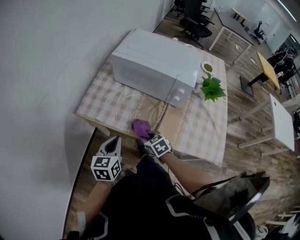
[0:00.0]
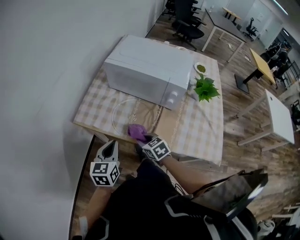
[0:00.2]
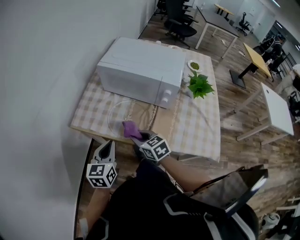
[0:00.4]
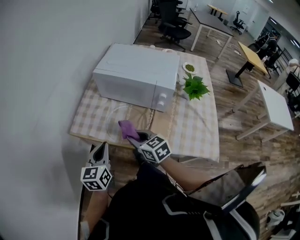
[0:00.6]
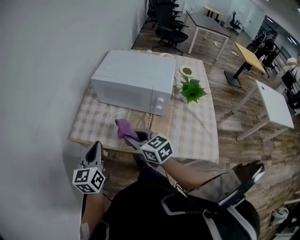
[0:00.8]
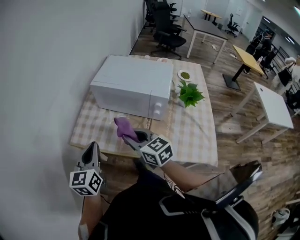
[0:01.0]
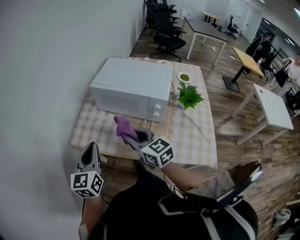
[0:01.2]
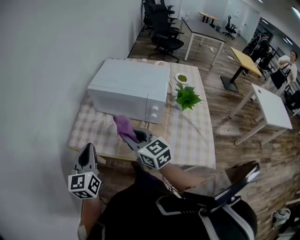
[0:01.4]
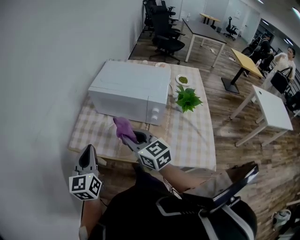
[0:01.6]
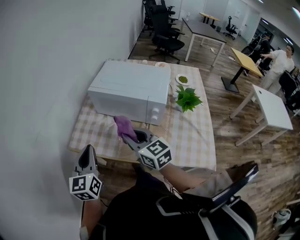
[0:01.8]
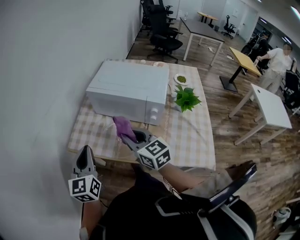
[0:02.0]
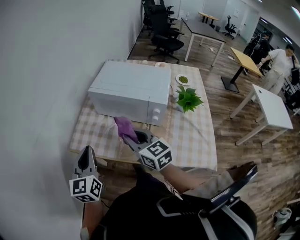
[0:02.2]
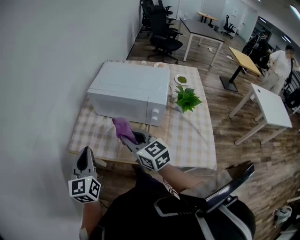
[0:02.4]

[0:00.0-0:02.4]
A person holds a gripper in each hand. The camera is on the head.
0.0 to 1.2 s: The left gripper moves upward, approximately 15 cm, and turns by about 20 degrees; the right gripper travels upward by roughly 25 cm, and points its fingers some 40 degrees further upward.
1.2 to 2.4 s: The grippers stay close to where they were, moving slightly.

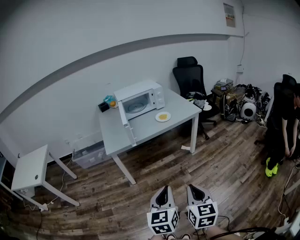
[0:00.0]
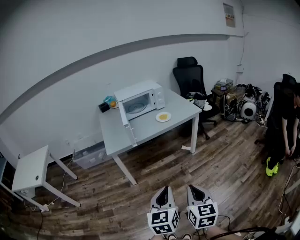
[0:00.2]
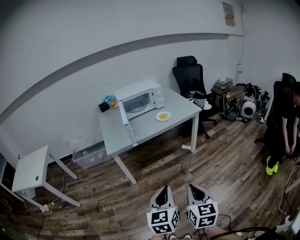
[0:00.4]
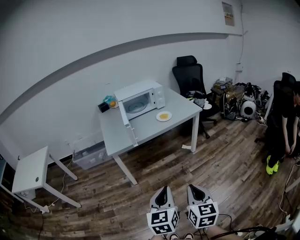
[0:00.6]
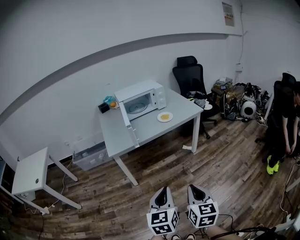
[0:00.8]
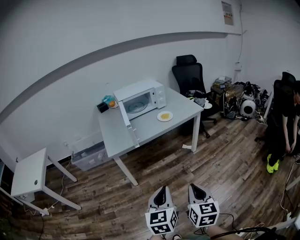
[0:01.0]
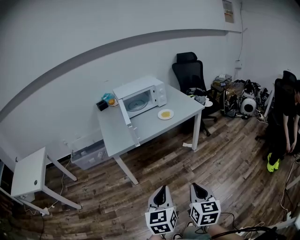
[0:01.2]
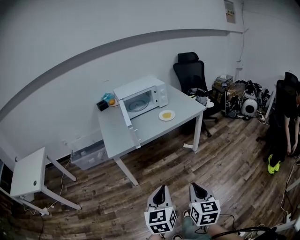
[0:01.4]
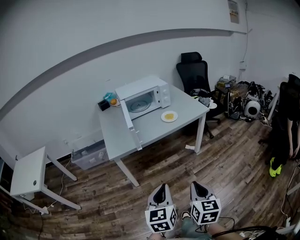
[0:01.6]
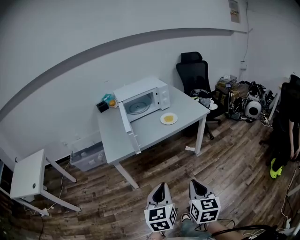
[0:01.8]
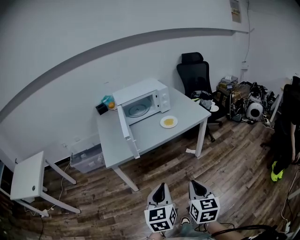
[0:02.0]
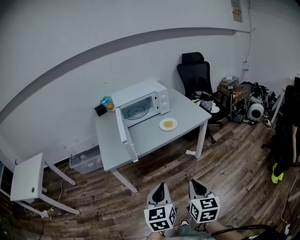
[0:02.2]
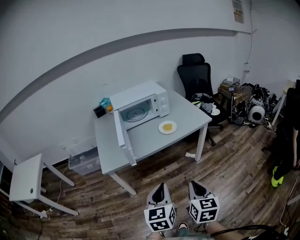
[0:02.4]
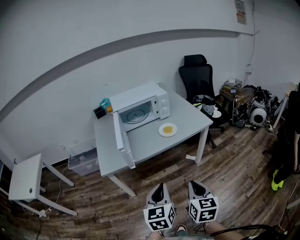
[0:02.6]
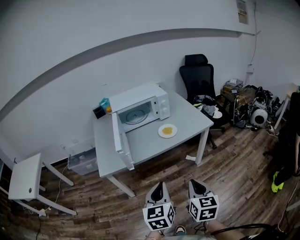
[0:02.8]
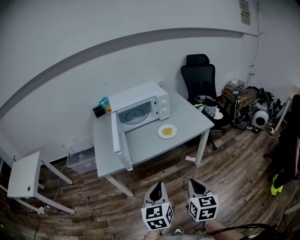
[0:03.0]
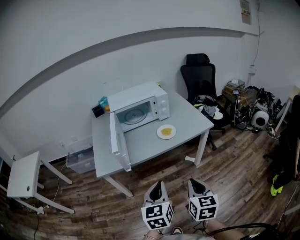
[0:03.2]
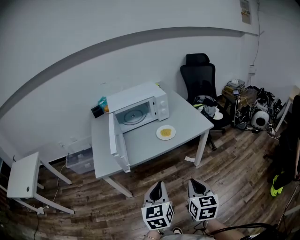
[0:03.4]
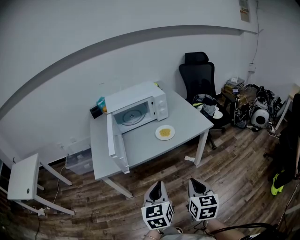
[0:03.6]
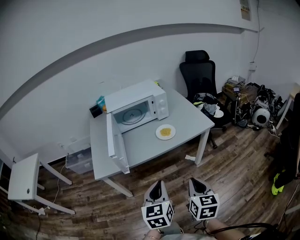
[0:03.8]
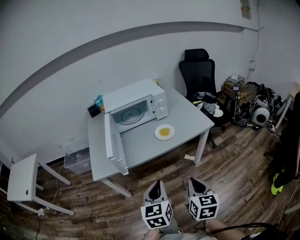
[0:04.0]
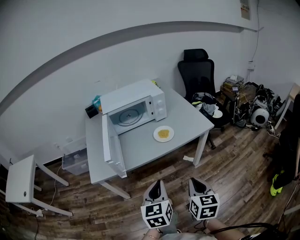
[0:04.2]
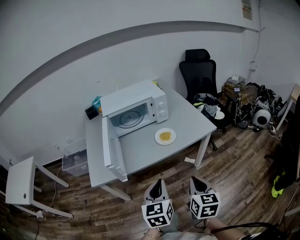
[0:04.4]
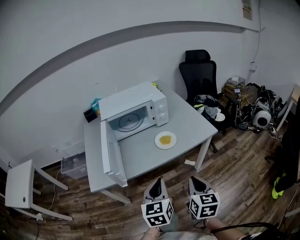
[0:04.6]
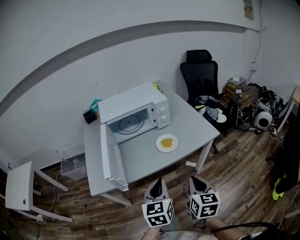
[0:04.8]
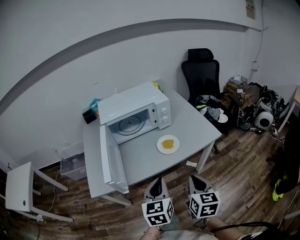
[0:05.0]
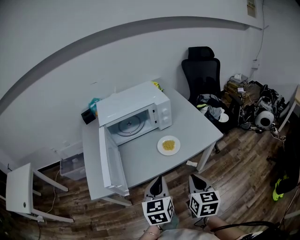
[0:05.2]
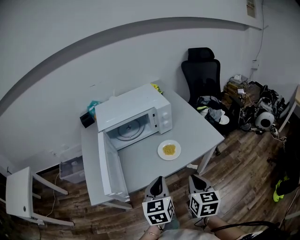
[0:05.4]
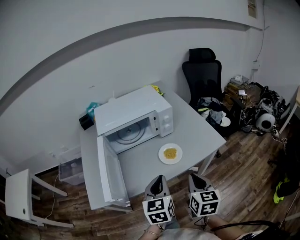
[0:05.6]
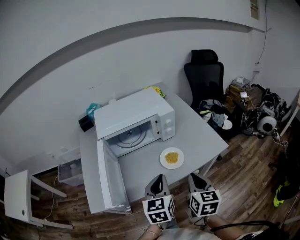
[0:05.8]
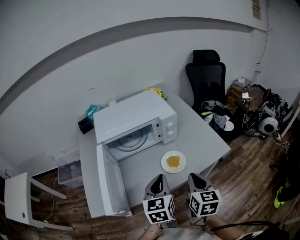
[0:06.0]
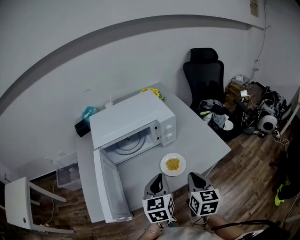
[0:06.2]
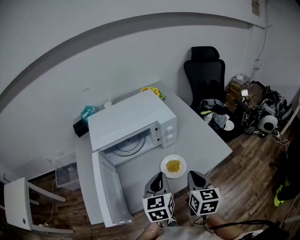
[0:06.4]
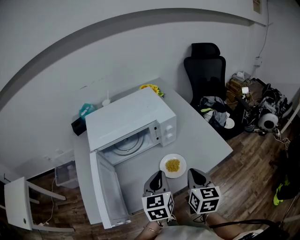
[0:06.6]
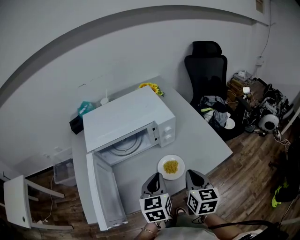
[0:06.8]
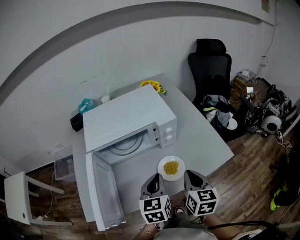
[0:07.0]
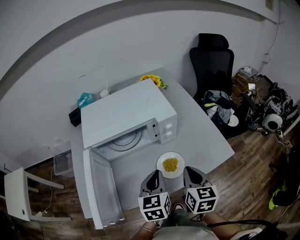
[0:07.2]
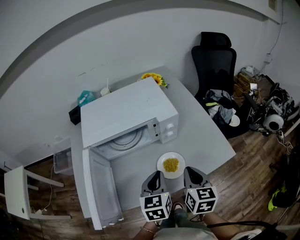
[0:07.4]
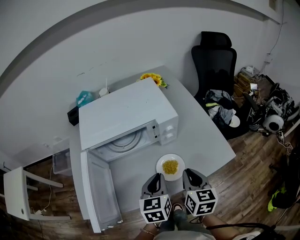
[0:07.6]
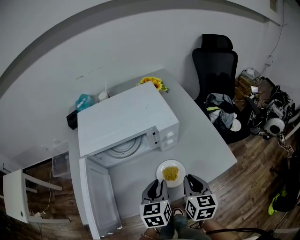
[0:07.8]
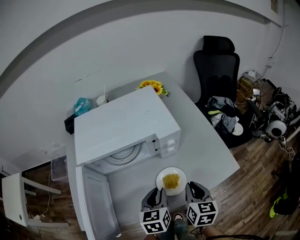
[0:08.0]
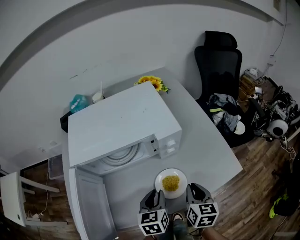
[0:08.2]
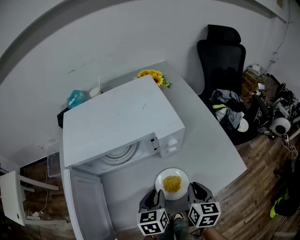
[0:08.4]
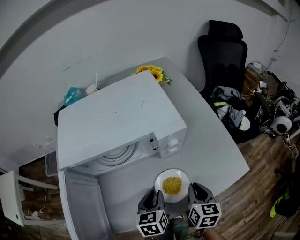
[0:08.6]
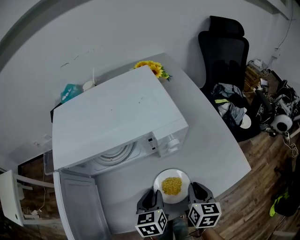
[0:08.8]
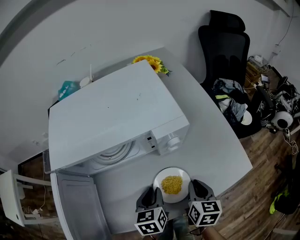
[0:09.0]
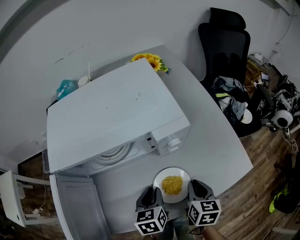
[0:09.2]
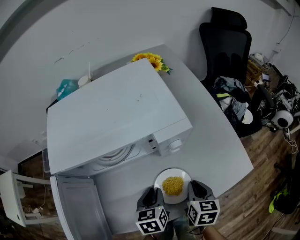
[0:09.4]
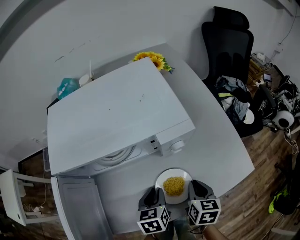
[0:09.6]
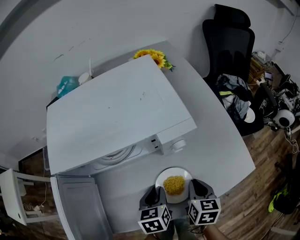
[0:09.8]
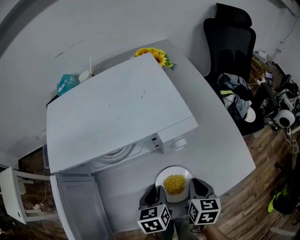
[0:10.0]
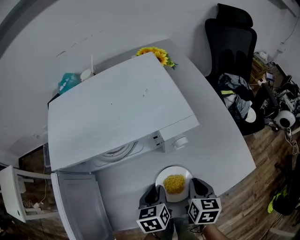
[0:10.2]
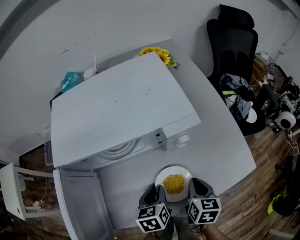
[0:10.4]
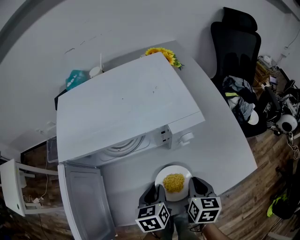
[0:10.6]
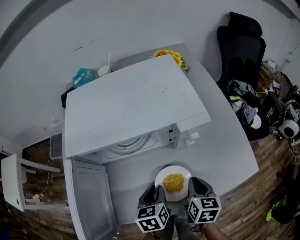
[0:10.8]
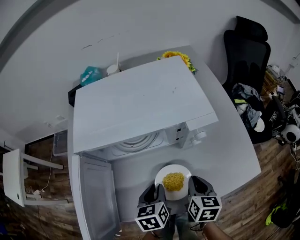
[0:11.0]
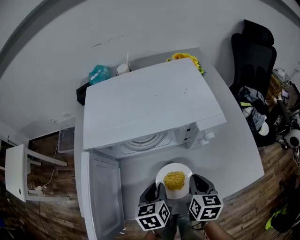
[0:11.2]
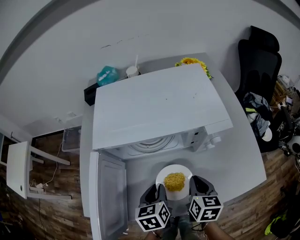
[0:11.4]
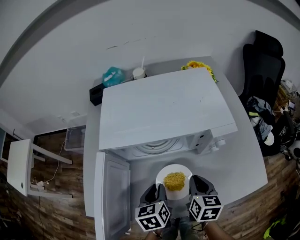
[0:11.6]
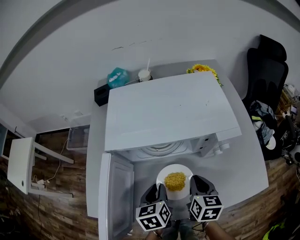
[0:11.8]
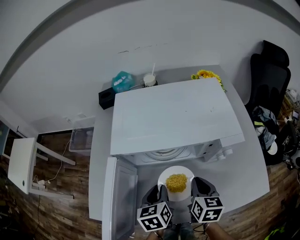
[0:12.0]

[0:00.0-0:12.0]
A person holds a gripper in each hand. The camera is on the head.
0.0 to 1.6 s: The right gripper shifts roughly 10 cm forward; the left gripper shifts about 10 cm forward and to the left.
1.6 to 3.0 s: The grippers both shift forward by approximately 20 cm.
3.0 to 4.4 s: The grippers both shift forward by some 10 cm.
4.4 to 6.0 s: The grippers both shift forward by some 25 cm.
6.0 to 7.6 s: The left gripper travels forward and downward by roughly 10 cm. Meanwhile the right gripper shifts approximately 10 cm forward.
7.6 to 9.0 s: The left gripper moves downward, approximately 15 cm; the right gripper moves downward and forward, about 15 cm.
9.0 to 10.4 s: The grippers make only small movements.
10.4 to 12.0 s: The right gripper moves to the left, upward and forward, about 15 cm, while the left gripper shifts approximately 15 cm to the left and upward.

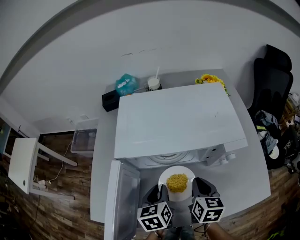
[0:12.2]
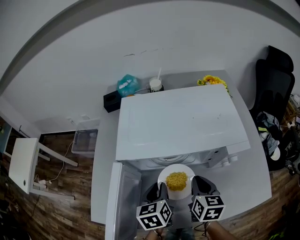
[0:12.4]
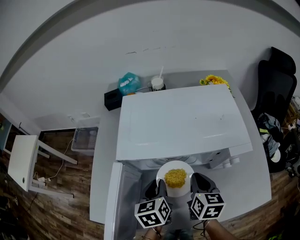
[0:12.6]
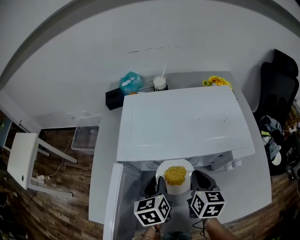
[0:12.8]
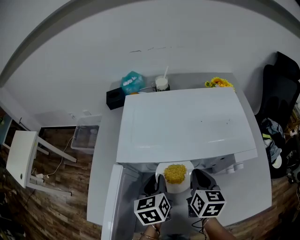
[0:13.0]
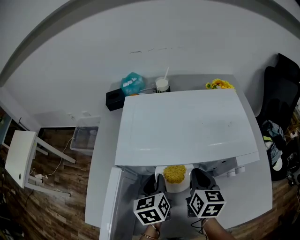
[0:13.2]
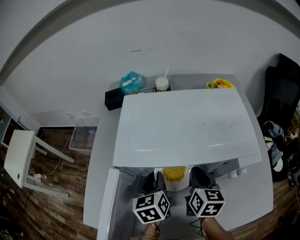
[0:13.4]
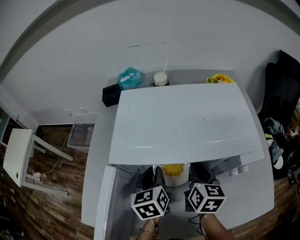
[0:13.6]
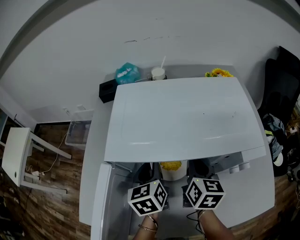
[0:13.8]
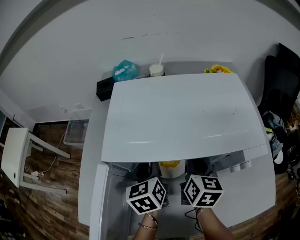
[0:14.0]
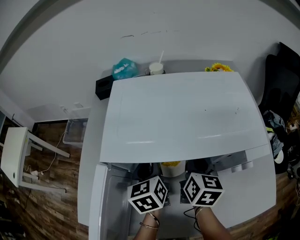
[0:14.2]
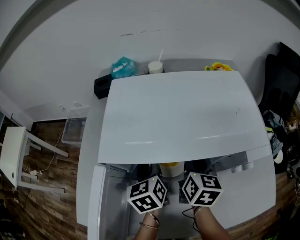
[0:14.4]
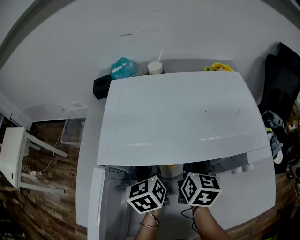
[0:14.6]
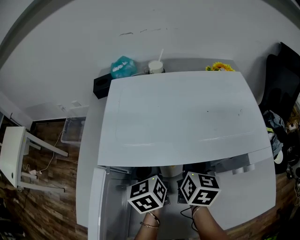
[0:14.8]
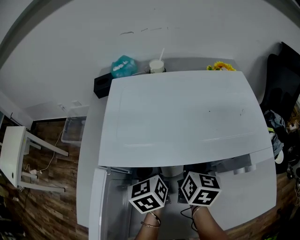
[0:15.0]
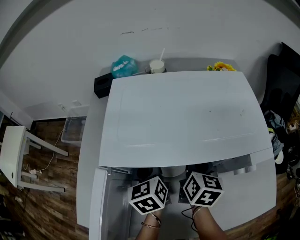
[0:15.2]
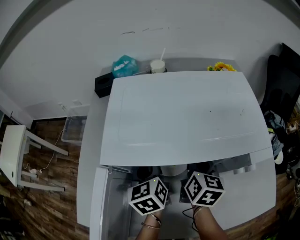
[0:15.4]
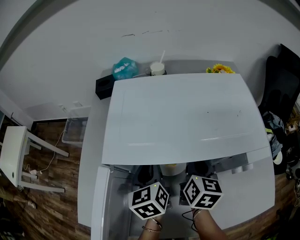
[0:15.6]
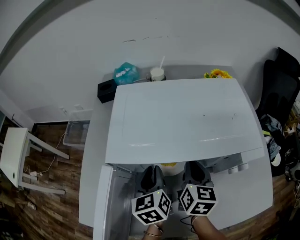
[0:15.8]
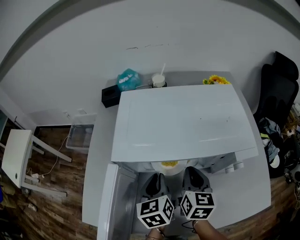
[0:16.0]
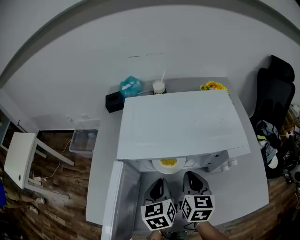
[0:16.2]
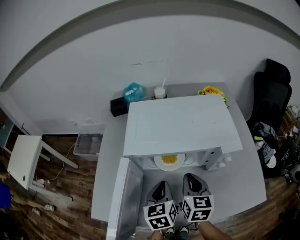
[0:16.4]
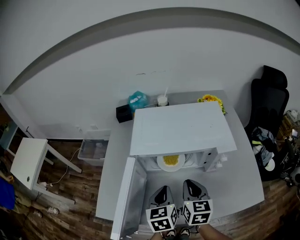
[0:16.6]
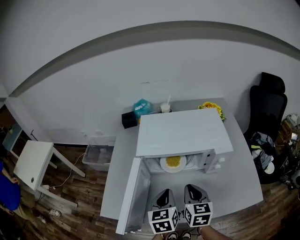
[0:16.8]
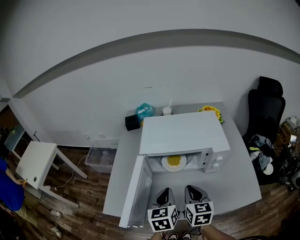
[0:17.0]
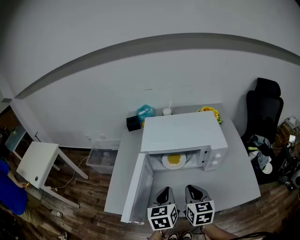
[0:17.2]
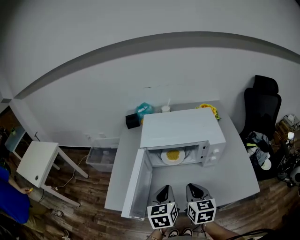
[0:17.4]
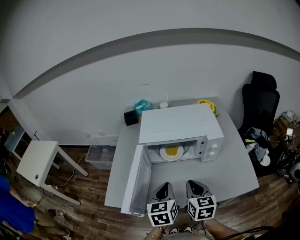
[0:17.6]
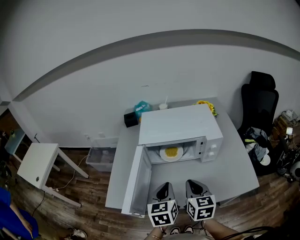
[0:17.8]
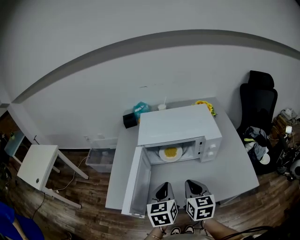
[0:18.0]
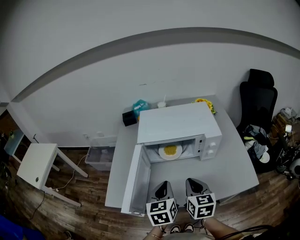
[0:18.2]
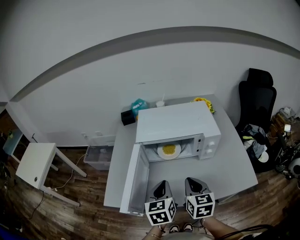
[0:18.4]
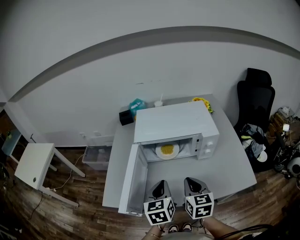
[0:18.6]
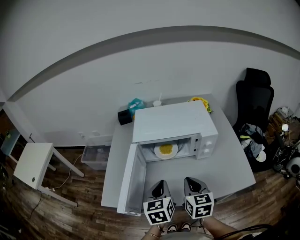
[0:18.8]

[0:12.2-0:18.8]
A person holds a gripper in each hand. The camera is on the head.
12.2 to 13.8 s: Both grippers travel together forward, approximately 10 cm.
13.8 to 15.4 s: The grippers make only small movements.
15.4 to 17.2 s: Both grippers move backward and upward, about 30 cm. The right gripper rotates approximately 20 degrees.
17.2 to 18.8 s: There are only small adjustments of the grippers.

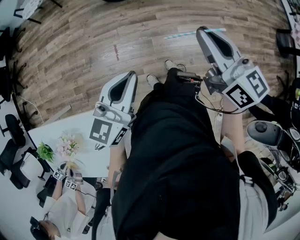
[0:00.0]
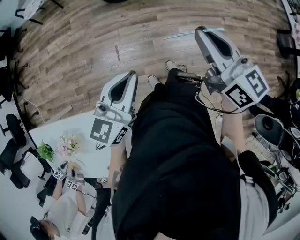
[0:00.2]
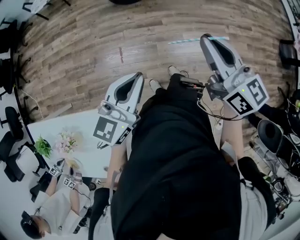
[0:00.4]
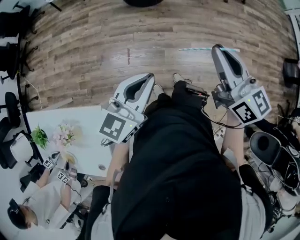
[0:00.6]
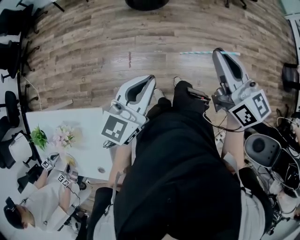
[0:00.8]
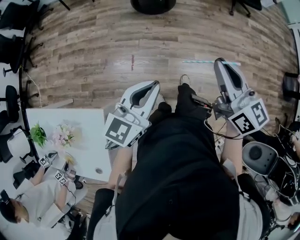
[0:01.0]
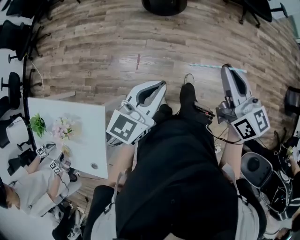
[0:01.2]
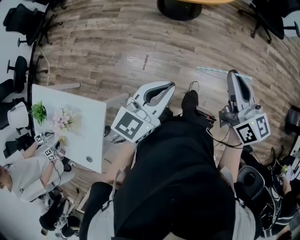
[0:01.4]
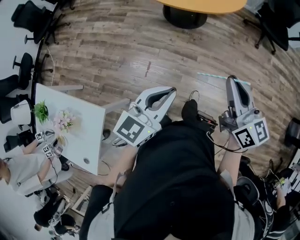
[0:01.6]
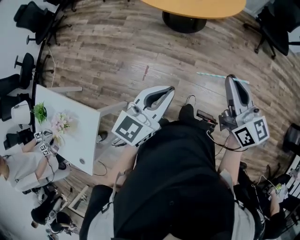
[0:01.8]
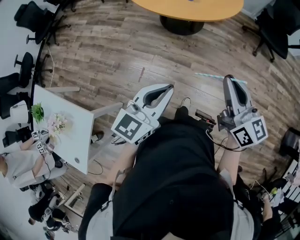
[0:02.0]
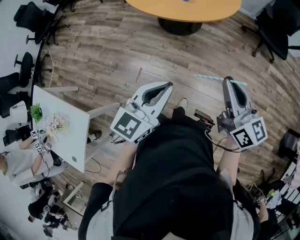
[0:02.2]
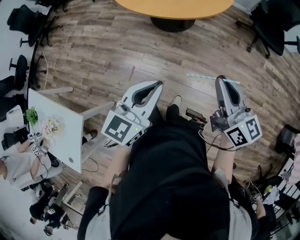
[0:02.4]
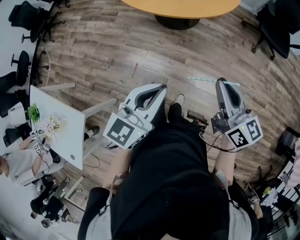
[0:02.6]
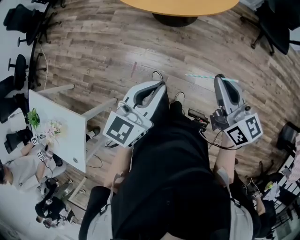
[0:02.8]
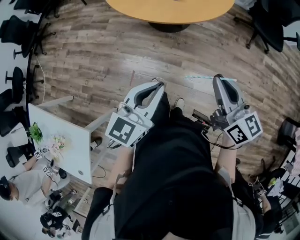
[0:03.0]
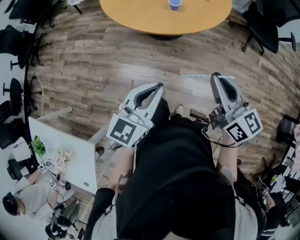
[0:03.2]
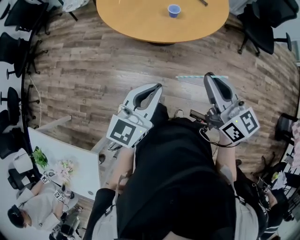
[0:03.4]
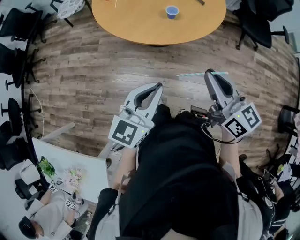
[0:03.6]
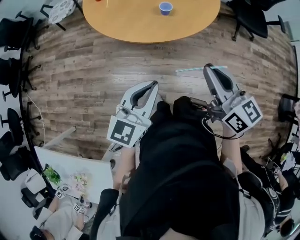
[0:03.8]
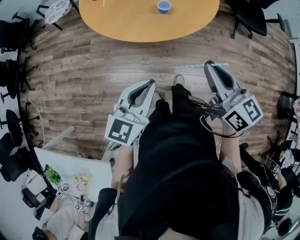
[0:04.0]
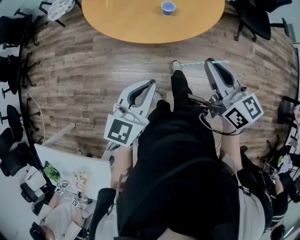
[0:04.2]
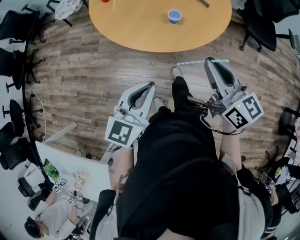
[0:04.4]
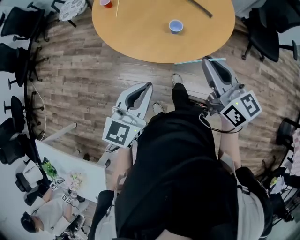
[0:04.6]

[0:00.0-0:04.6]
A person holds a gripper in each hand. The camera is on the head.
0.0 to 1.6 s: The two grippers go approximately 10 cm forward.
1.6 to 3.0 s: Both grippers travel together forward and to the right, approximately 20 cm.
3.0 to 4.6 s: Both grippers move forward, about 25 cm.
